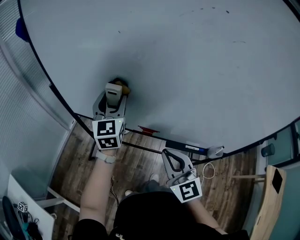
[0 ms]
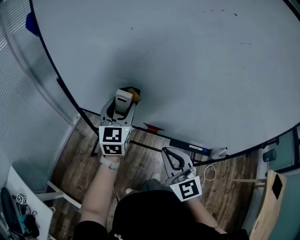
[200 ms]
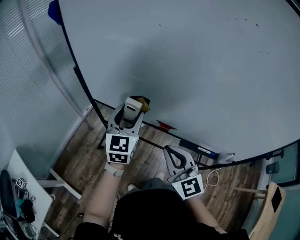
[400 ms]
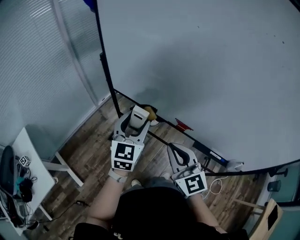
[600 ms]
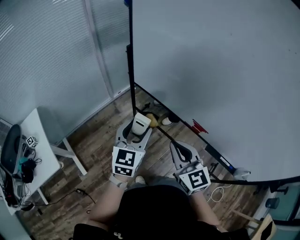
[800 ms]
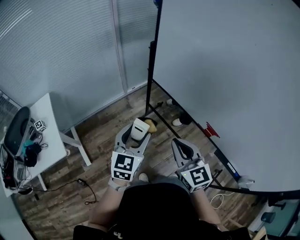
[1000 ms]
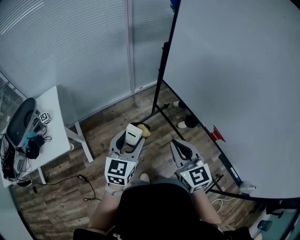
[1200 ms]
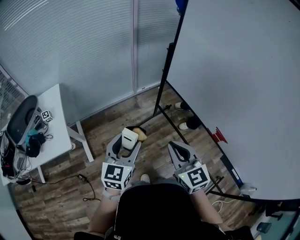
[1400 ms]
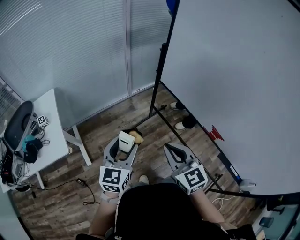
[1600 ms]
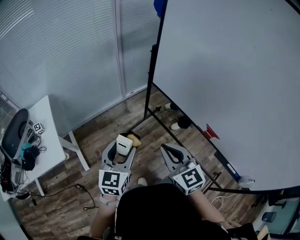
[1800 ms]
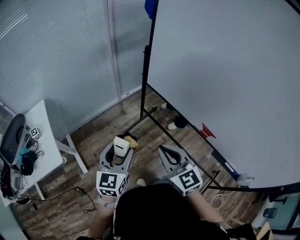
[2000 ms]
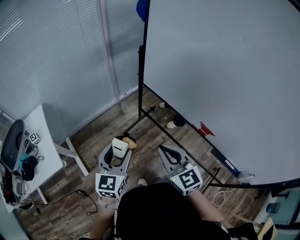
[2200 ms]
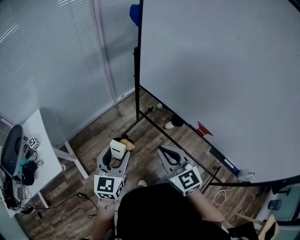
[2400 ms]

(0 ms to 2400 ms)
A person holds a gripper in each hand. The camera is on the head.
0 ms - 1200 ms: The right gripper ends up some 30 cm from where it was, and changes its angle by about 40 degrees. Meanwhile the left gripper ends up approximately 40 cm from where it was, and rotates some 30 degrees.
1200 ms - 2400 ms: The grippers make only small movements.

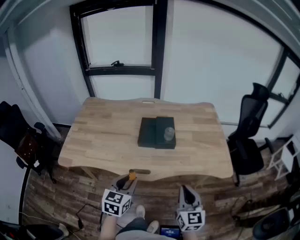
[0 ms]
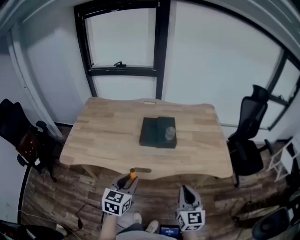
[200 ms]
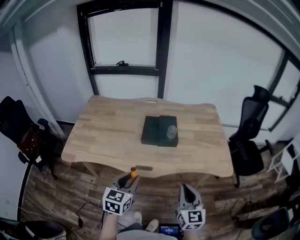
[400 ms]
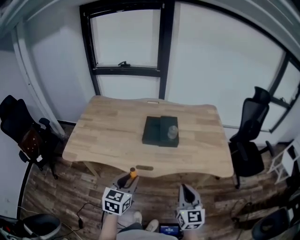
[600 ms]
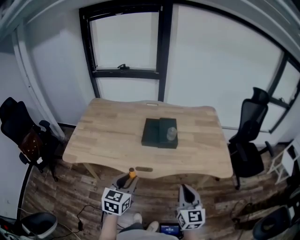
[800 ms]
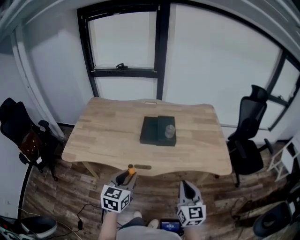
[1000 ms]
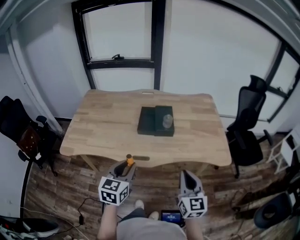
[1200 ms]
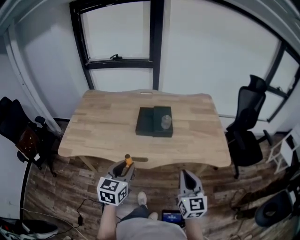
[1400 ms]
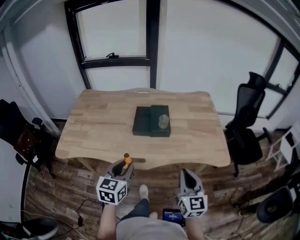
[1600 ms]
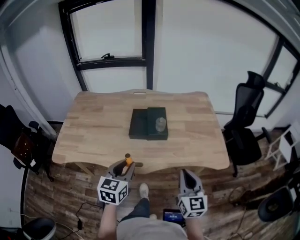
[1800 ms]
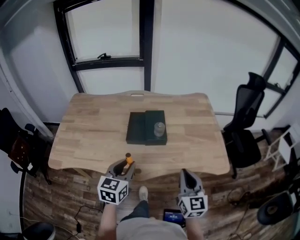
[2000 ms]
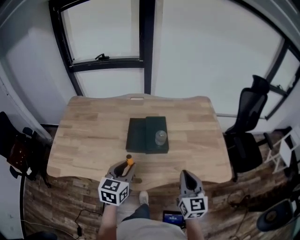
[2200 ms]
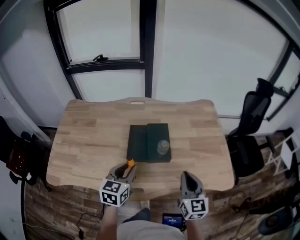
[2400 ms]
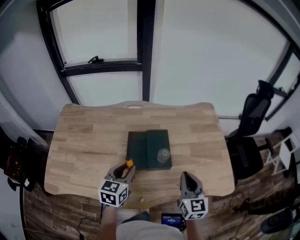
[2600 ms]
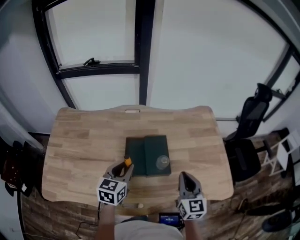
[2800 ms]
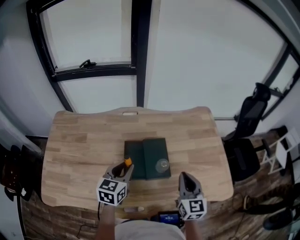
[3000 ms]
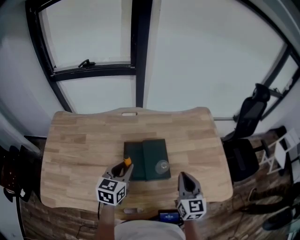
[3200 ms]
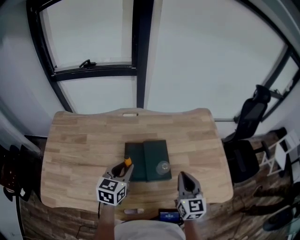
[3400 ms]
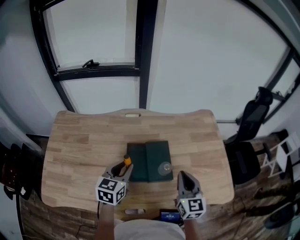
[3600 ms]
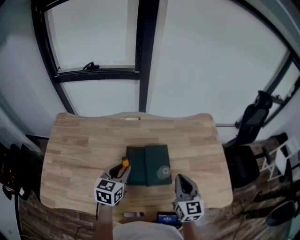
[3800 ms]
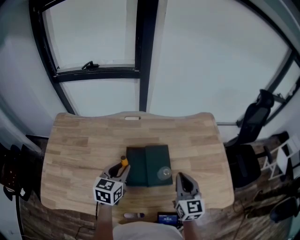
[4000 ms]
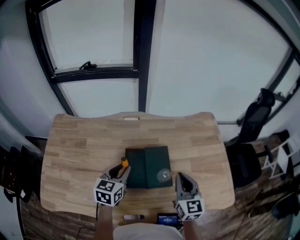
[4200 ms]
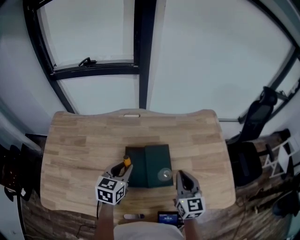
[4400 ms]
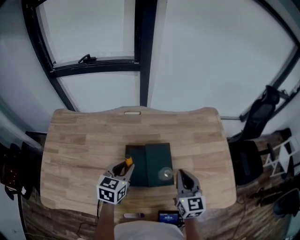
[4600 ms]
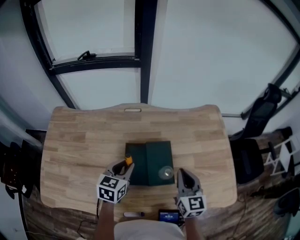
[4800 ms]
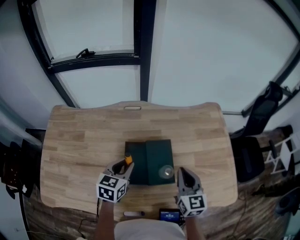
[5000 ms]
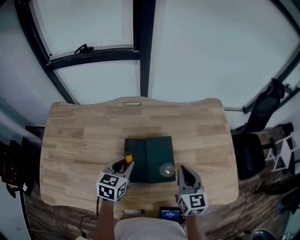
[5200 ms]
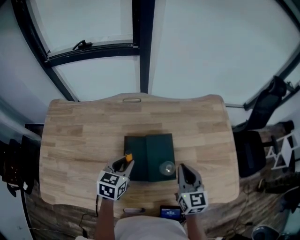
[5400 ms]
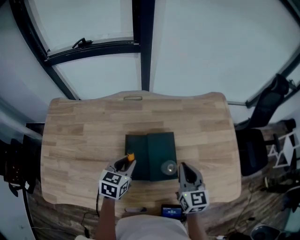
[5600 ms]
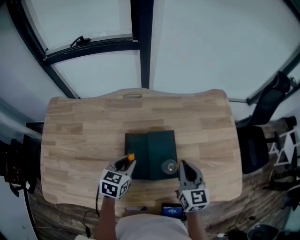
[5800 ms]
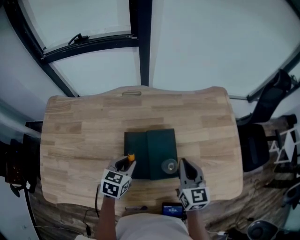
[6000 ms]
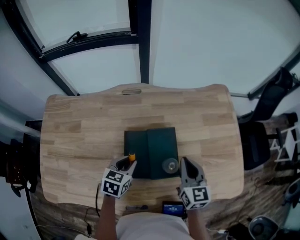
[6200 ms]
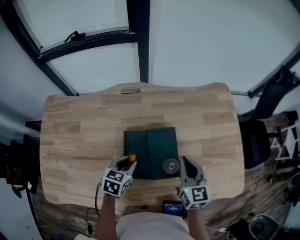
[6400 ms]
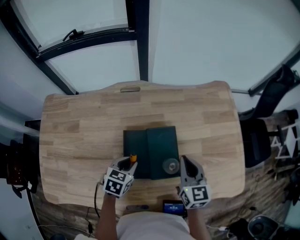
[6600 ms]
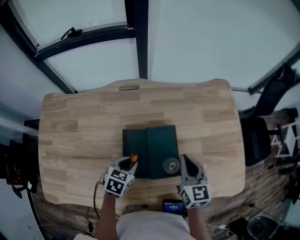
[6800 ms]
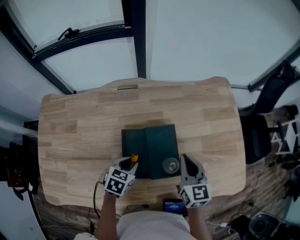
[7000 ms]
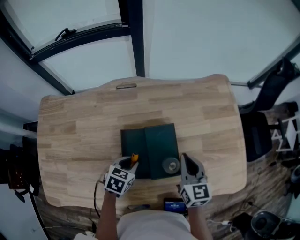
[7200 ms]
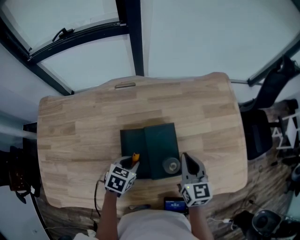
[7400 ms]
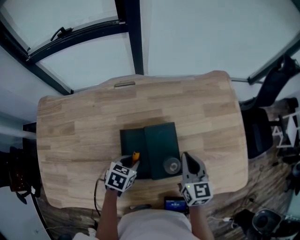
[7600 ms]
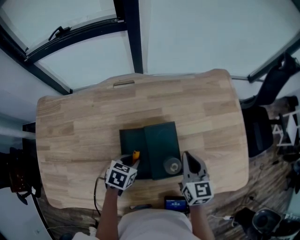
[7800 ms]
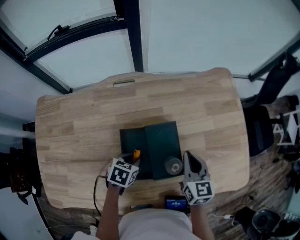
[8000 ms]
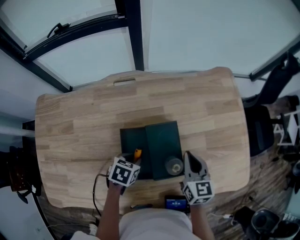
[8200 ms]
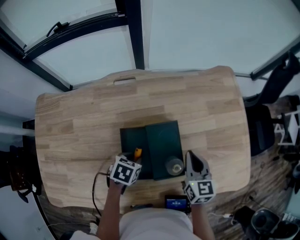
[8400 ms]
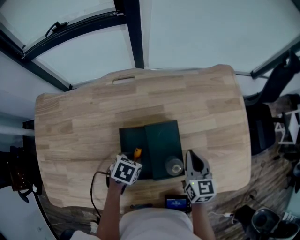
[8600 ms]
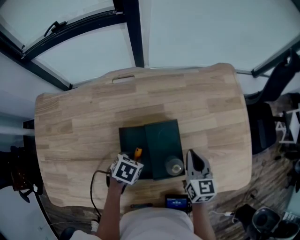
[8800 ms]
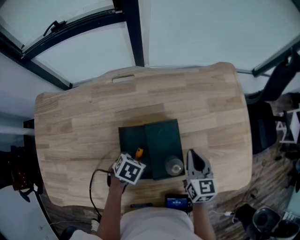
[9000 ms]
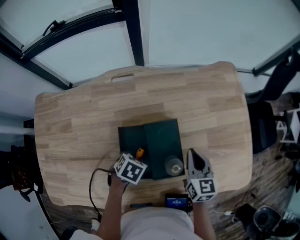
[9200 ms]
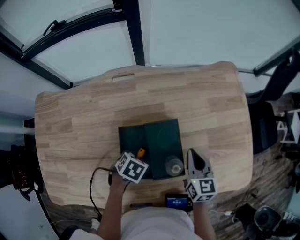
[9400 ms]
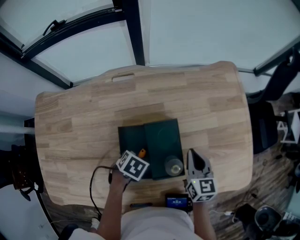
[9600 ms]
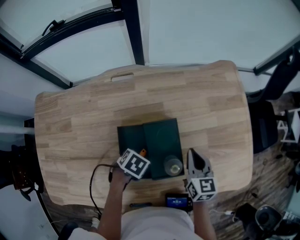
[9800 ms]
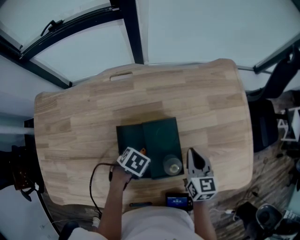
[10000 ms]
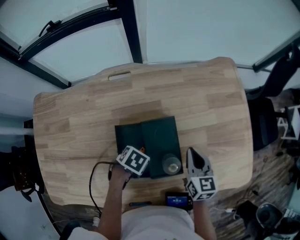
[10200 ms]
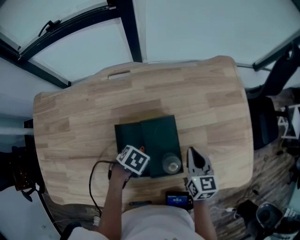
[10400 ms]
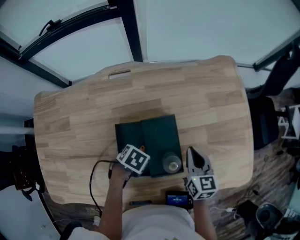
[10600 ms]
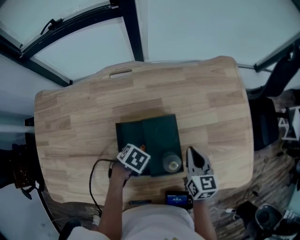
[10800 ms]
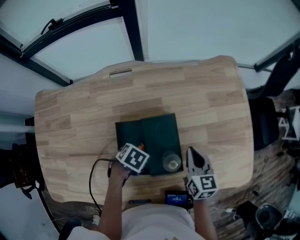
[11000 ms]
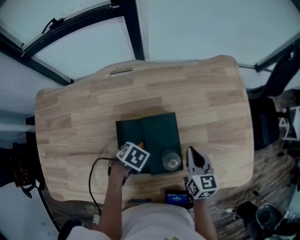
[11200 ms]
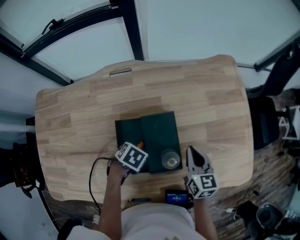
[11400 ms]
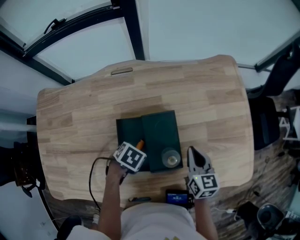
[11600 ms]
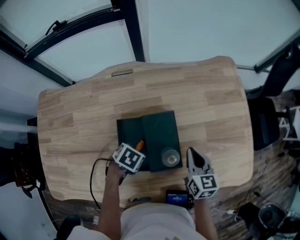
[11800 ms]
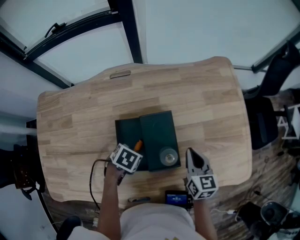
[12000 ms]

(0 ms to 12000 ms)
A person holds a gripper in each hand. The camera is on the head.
0 ms - 1600 ms: The grippers move only a little.
1600 ms - 3000 ms: The two grippers go about 30 cm forward.
3000 ms - 4400 ms: The right gripper travels forward by about 5 cm. The left gripper shifts by roughly 5 cm.
4400 ms - 6000 ms: The right gripper goes some 5 cm downward, while the left gripper shifts roughly 10 cm downward.
6000 ms - 7600 ms: The left gripper goes some 5 cm downward.
7600 ms - 9000 ms: The right gripper ends up some 5 cm from where it was.
9000 ms - 12000 ms: The grippers move only a little.

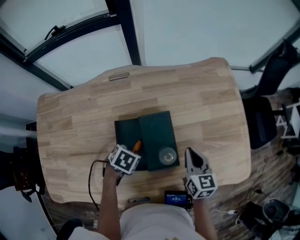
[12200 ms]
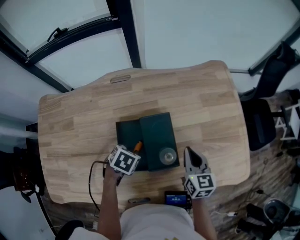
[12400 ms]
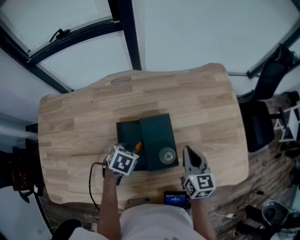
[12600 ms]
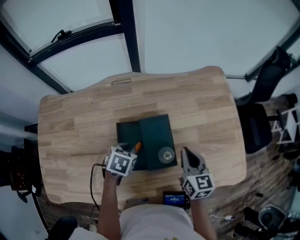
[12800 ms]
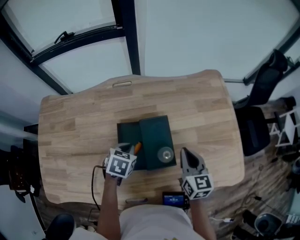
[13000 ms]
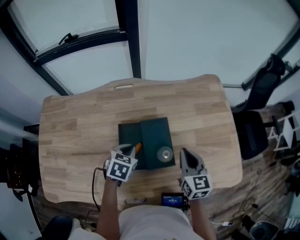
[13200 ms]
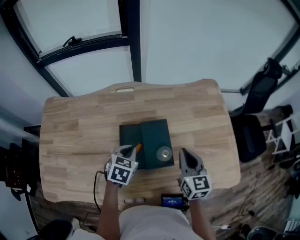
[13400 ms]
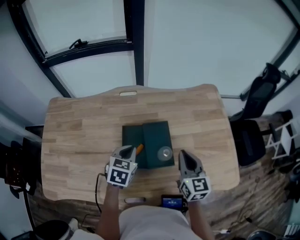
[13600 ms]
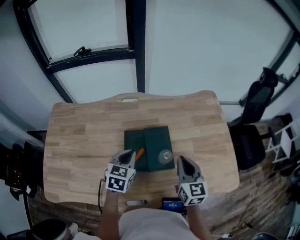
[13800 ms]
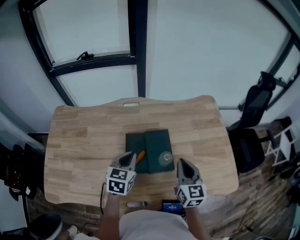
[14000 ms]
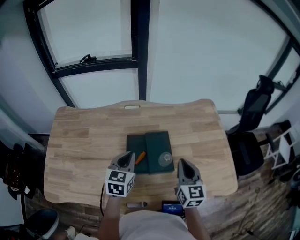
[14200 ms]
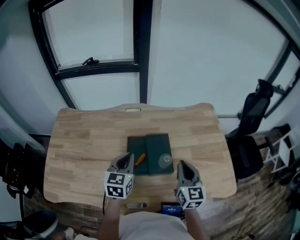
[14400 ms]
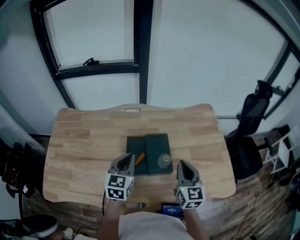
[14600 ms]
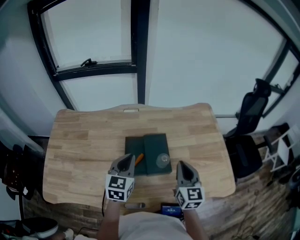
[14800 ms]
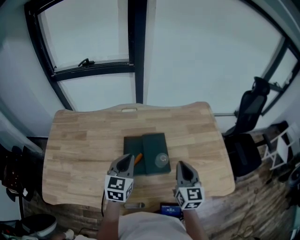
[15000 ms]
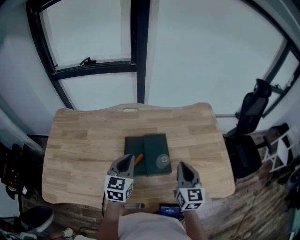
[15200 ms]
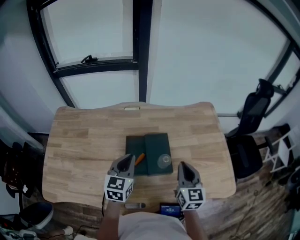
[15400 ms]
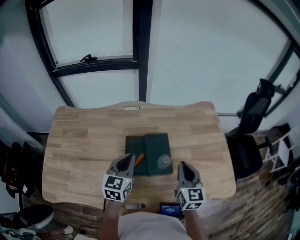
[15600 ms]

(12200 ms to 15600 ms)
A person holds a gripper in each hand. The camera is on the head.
12200 ms - 13800 ms: Both grippers move upward, approximately 15 cm. The left gripper points its fingers approximately 40 degrees further upward, and closes its fingers.
13800 ms - 15600 ms: The left gripper shifts approximately 5 cm upward, and rotates approximately 20 degrees.

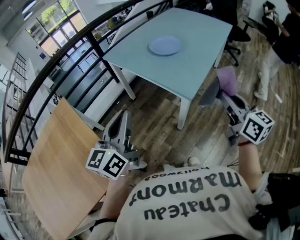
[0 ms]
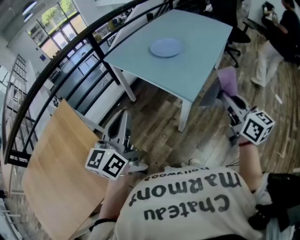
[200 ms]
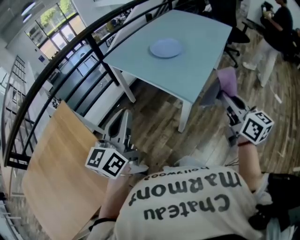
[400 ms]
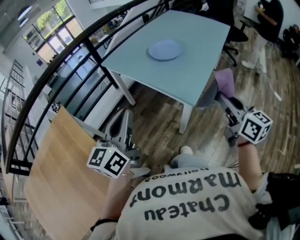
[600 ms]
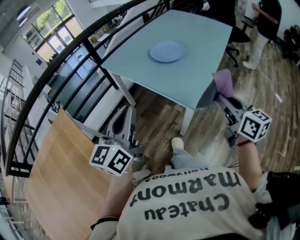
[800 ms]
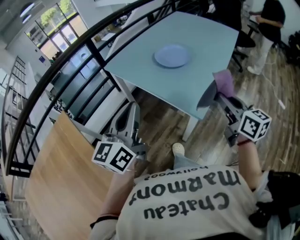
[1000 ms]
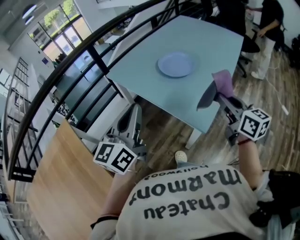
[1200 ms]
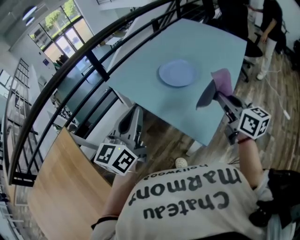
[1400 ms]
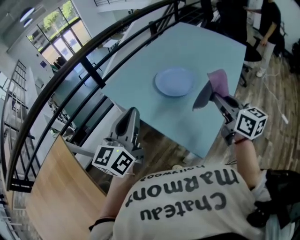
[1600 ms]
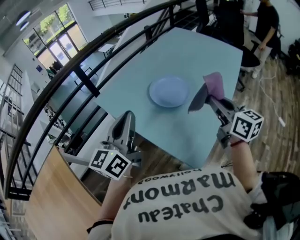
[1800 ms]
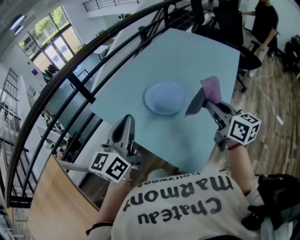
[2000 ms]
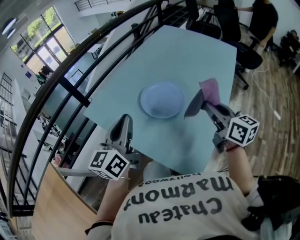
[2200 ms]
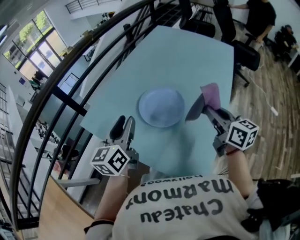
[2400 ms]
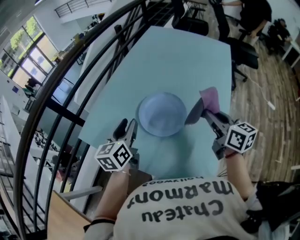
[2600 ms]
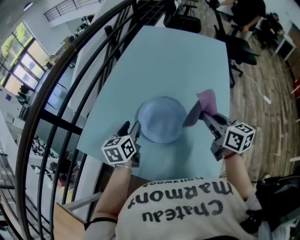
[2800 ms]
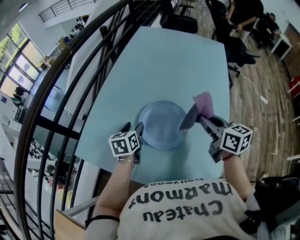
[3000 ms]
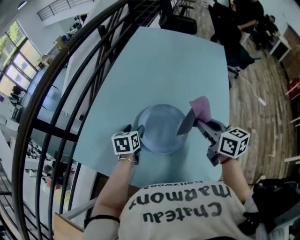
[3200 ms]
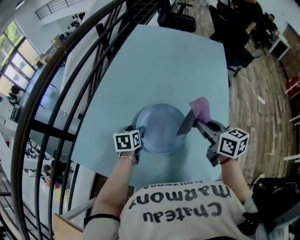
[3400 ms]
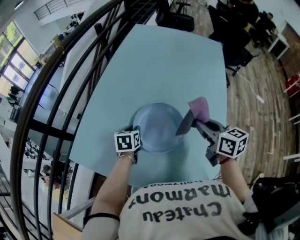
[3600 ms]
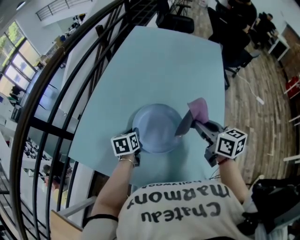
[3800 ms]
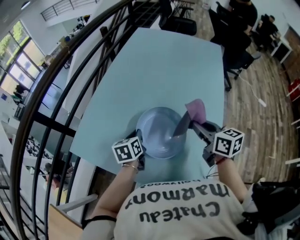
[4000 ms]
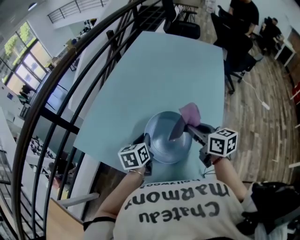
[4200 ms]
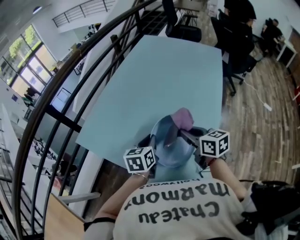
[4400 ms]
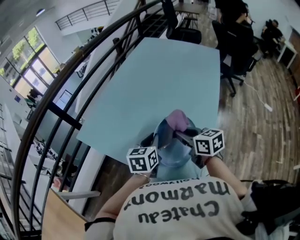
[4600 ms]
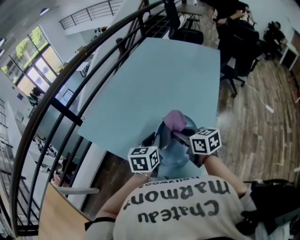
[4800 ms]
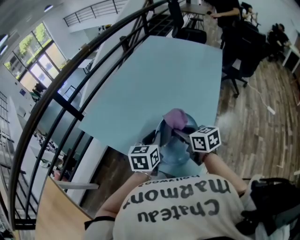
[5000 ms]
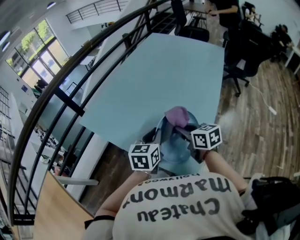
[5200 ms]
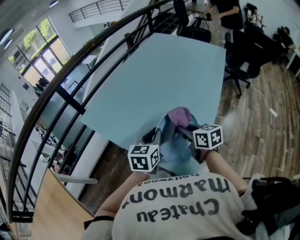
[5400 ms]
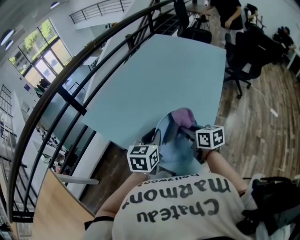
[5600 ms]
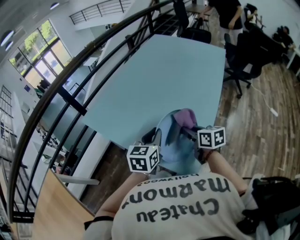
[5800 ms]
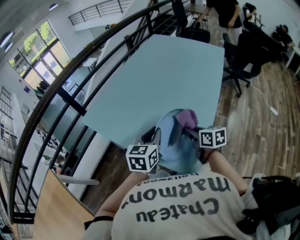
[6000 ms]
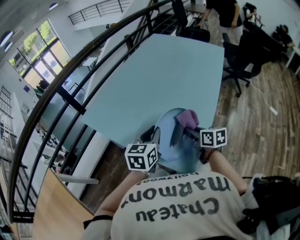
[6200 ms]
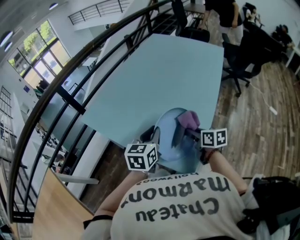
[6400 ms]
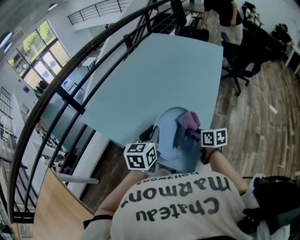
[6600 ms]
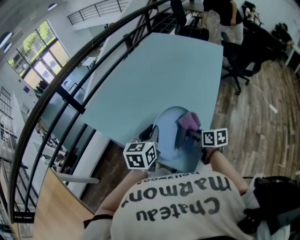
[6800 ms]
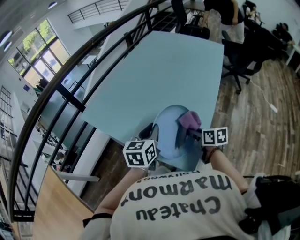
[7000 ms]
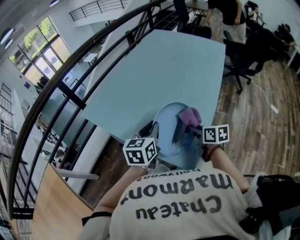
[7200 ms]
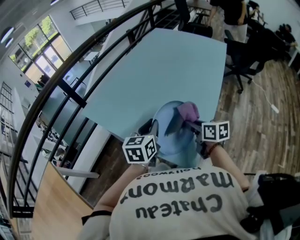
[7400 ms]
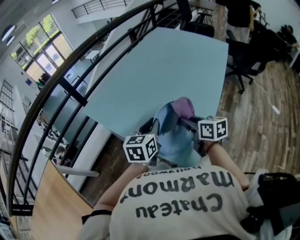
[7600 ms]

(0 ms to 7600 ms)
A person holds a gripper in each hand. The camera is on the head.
0 ms - 1600 ms: Both grippers travel together forward, roughly 30 cm.
1600 ms - 3000 ms: The right gripper is displaced forward by about 15 cm, and rotates some 20 degrees, while the left gripper moves forward and downward, roughly 40 cm, tilts its fingers roughly 40 degrees downward, and opens.
3000 ms - 4600 ms: The left gripper travels backward and to the right by approximately 20 cm, and closes up. Meanwhile the right gripper is displaced backward and downward by some 15 cm.
4600 ms - 6000 ms: The right gripper travels downward and backward by roughly 10 cm; the left gripper is displaced backward by about 5 cm.
6000 ms - 7600 ms: The right gripper ends up roughly 5 cm from where it was.
